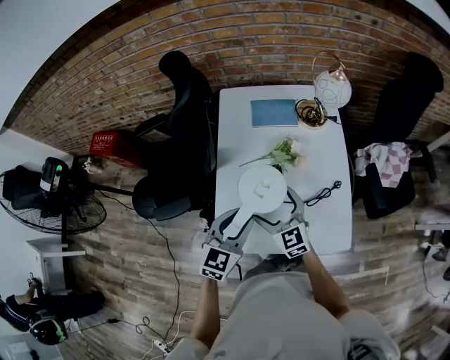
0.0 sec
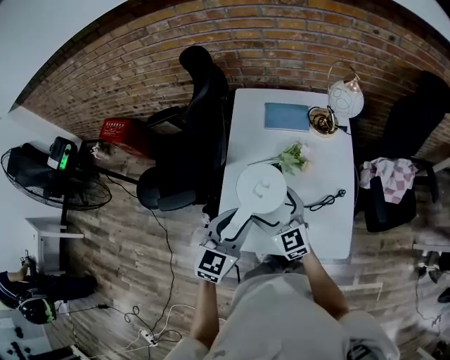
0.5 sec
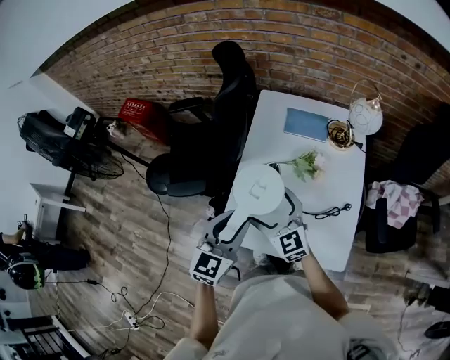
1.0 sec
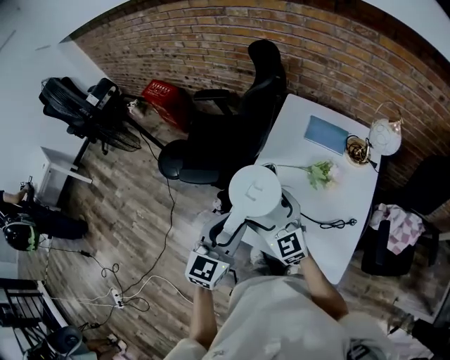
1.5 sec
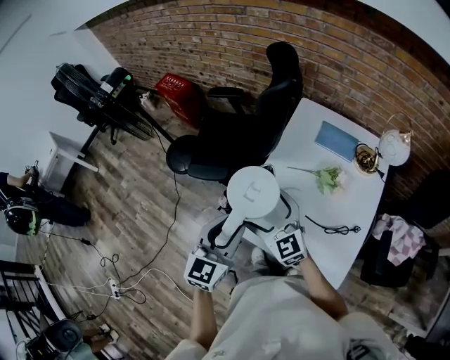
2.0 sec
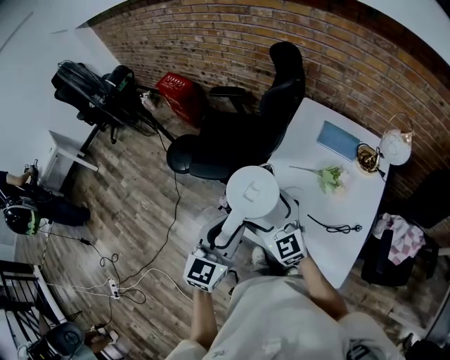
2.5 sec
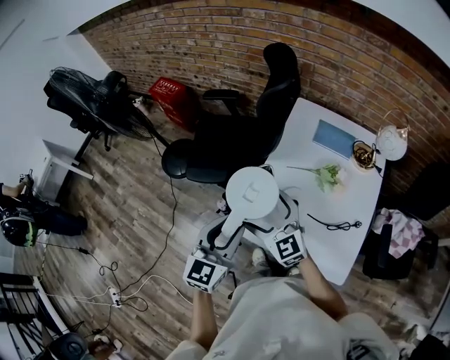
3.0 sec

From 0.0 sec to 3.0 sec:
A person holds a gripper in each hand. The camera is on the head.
From 0.0 sec to 1.5 sec: The left gripper shifts by some 10 cm, and turns by approximately 30 degrees. The right gripper shifts by approximately 10 cm, and turns by about 30 degrees.
From 1.5 sec to 3.0 sec: The two grippers go about 5 cm to the left.

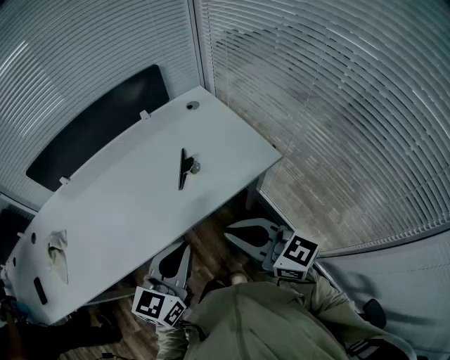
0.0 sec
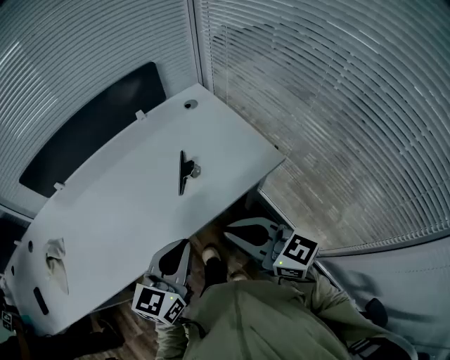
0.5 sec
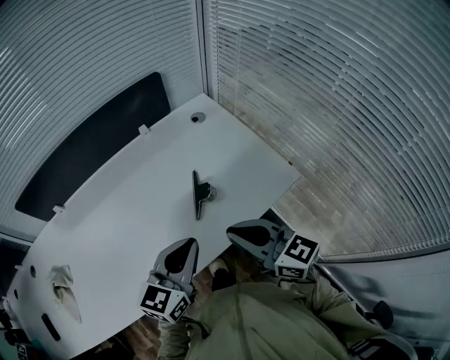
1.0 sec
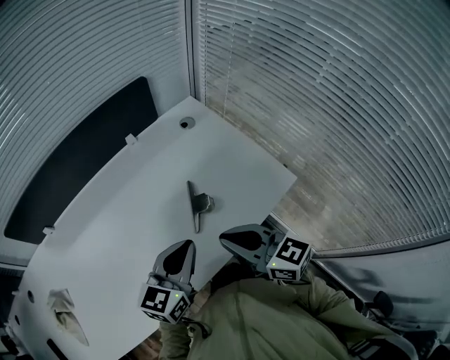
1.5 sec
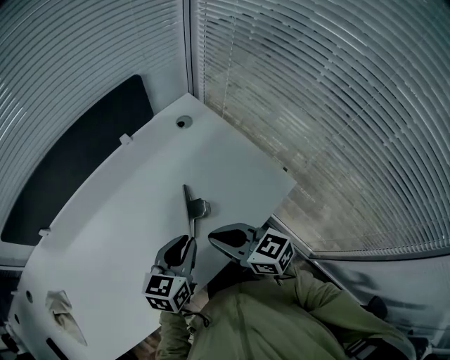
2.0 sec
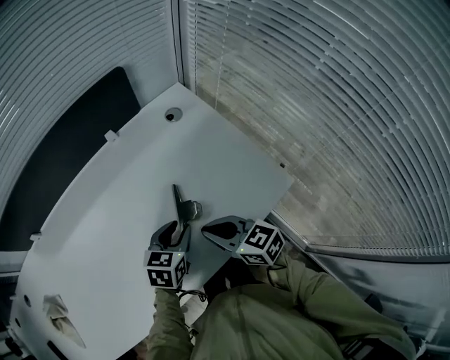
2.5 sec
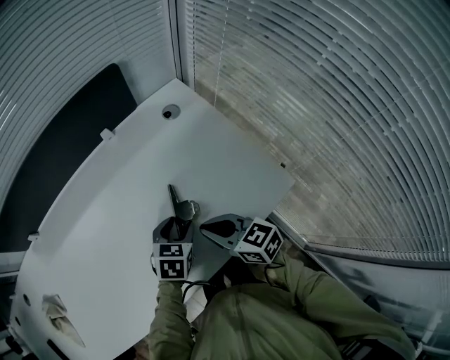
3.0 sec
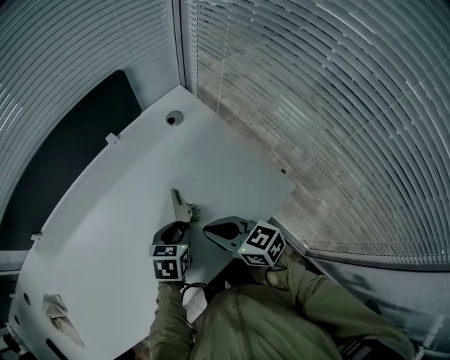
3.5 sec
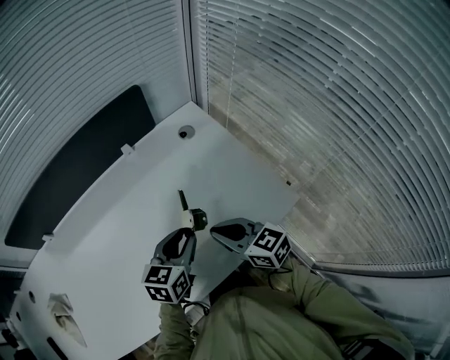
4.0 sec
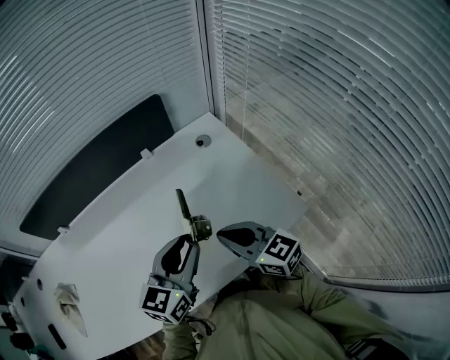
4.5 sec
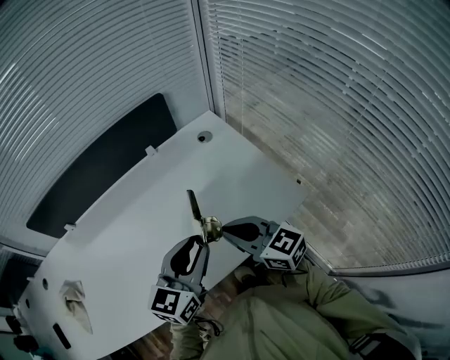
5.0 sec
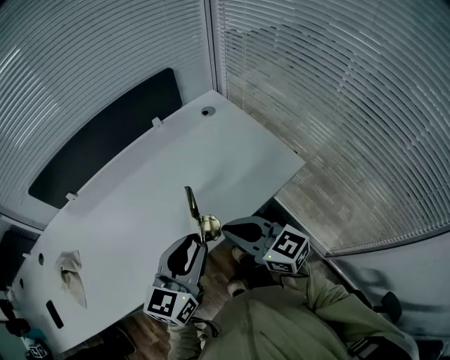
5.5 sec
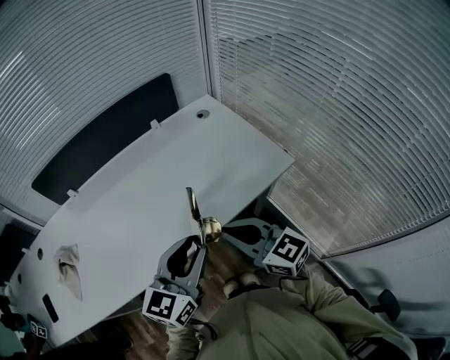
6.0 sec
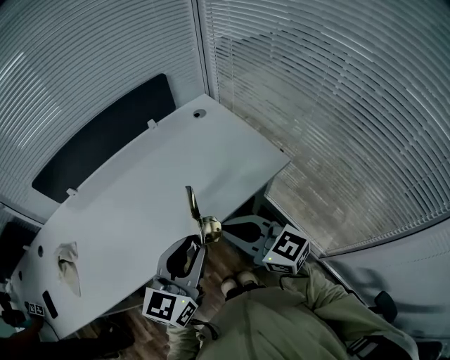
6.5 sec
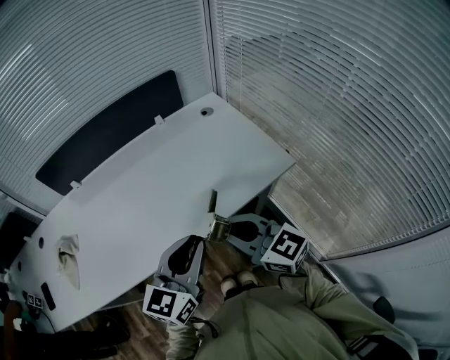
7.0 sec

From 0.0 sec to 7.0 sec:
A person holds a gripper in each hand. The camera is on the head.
From 0.0 sec to 2.0 sec: Both grippers move forward and downward, some 25 cm.
From 2.0 sec to 3.5 sec: The right gripper moves downward, about 5 cm. Meanwhile the left gripper heads downward and forward, covering approximately 10 cm, turns by some 20 degrees, and opens, then closes again.
From 3.5 sec to 5.0 sec: The left gripper goes some 20 cm upward, and tilts its fingers roughly 40 degrees upward, while the right gripper moves upward, approximately 10 cm.
From 5.0 sec to 7.0 sec: Both grippers move backward, approximately 15 cm.

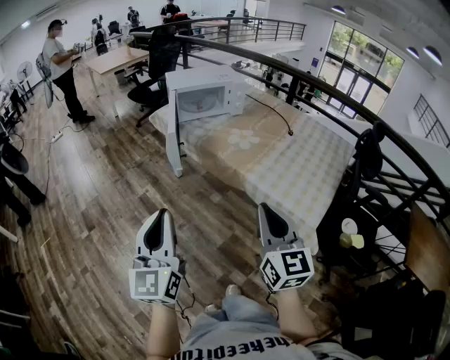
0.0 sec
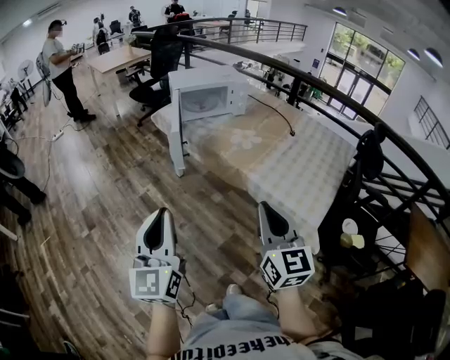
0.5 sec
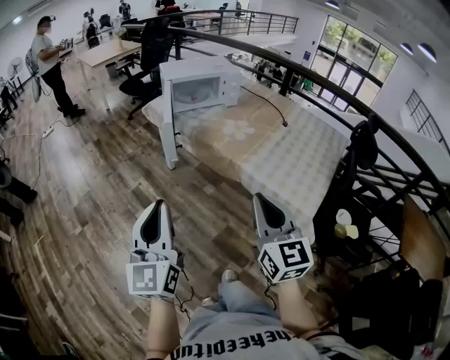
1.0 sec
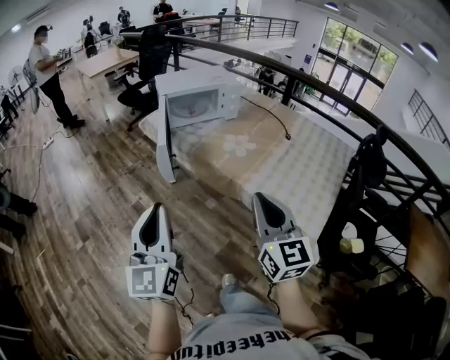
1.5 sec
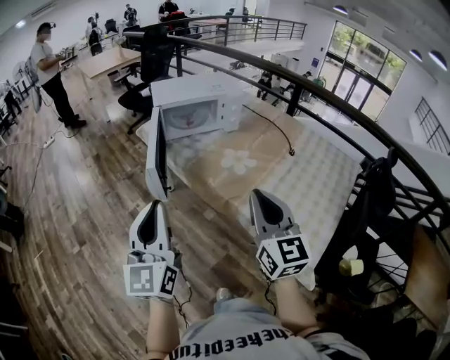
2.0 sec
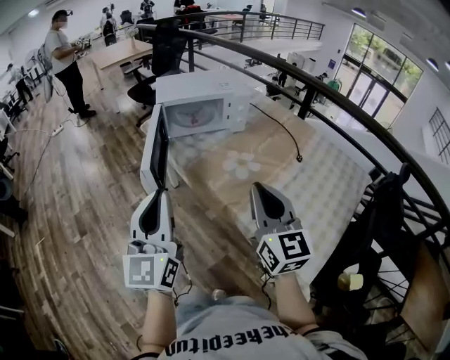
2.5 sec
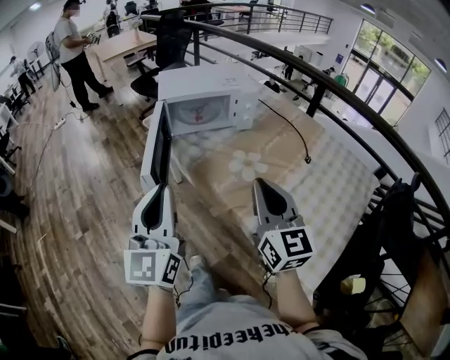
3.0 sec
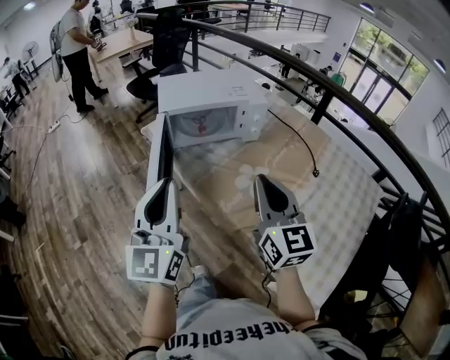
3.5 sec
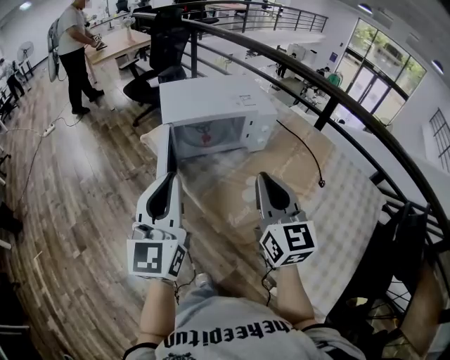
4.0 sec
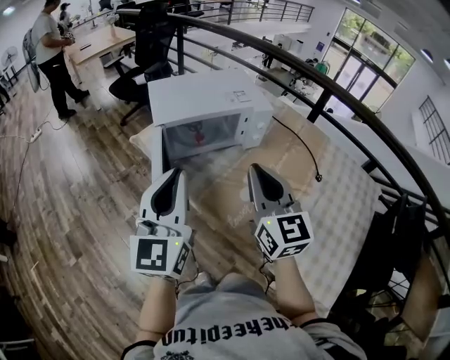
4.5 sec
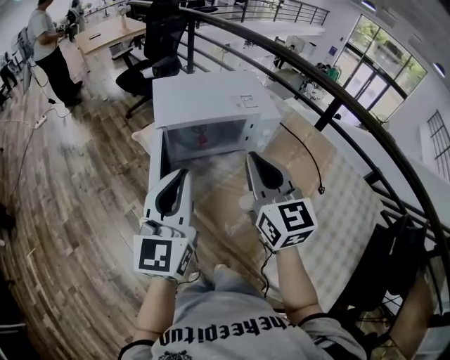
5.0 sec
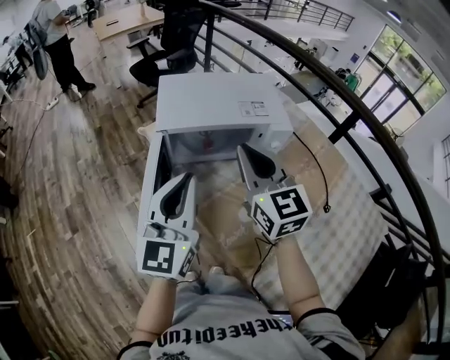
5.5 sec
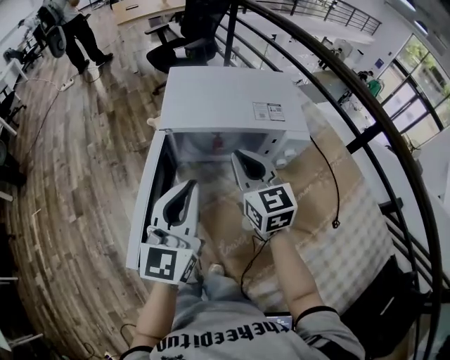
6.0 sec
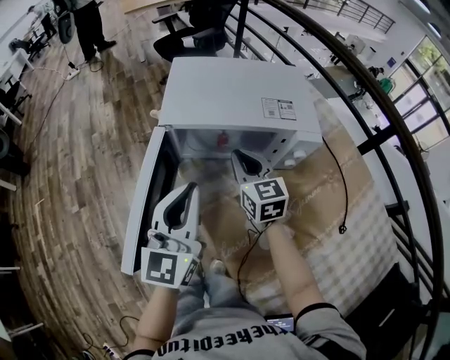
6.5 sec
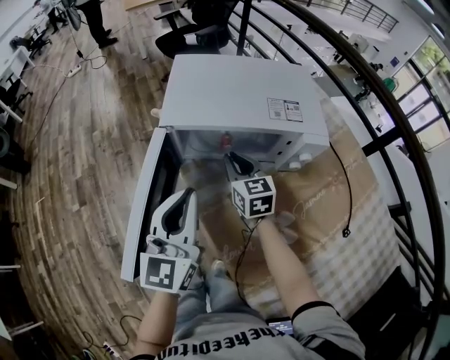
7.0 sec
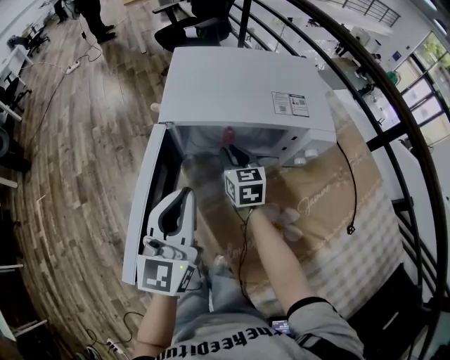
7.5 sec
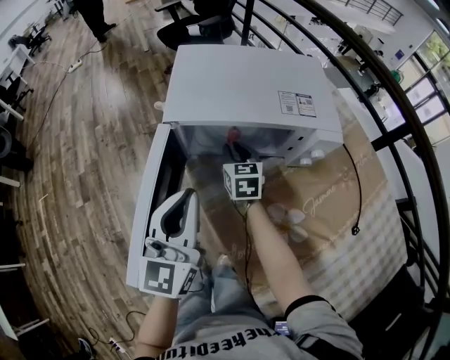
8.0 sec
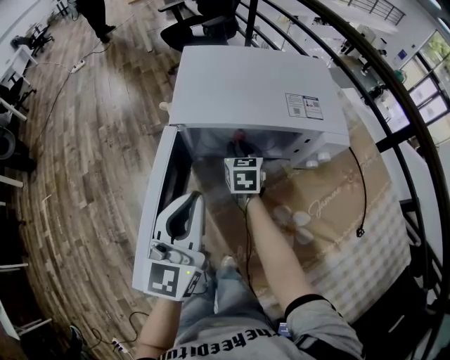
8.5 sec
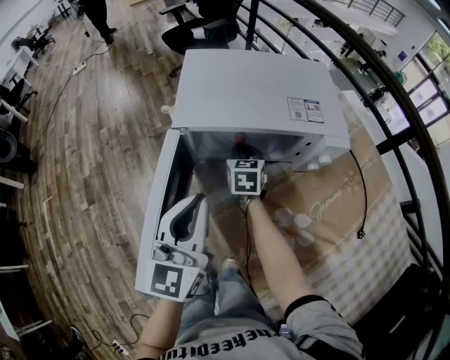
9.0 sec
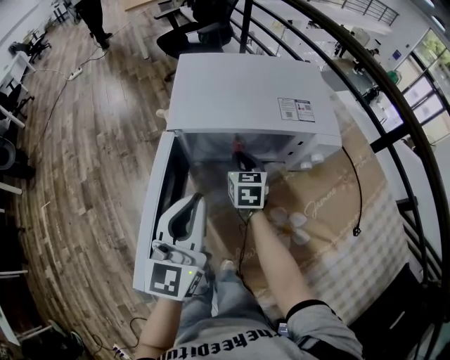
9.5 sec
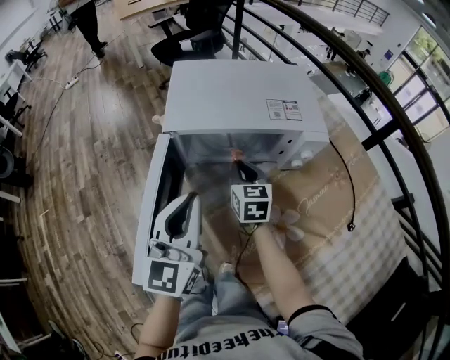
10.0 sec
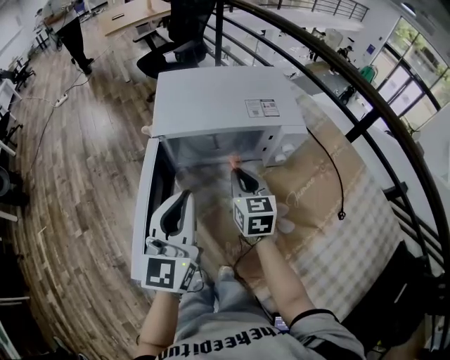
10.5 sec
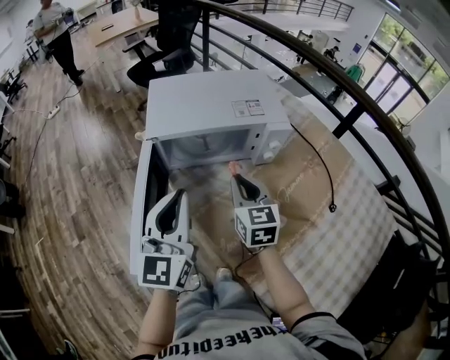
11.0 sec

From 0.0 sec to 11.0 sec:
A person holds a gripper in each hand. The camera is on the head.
From 0.0 sec to 2.0 sec: The grippers both shift forward by about 20 cm.
From 2.0 sec to 3.5 sec: The two grippers go approximately 20 cm forward.
From 3.5 sec to 5.5 sec: The grippers both shift forward by about 20 cm.
From 5.5 sec to 7.5 sec: The left gripper is displaced downward by approximately 10 cm. Meanwhile the right gripper shifts some 30 cm downward and forward, and turns by approximately 30 degrees.
From 7.5 sec to 9.0 sec: The right gripper changes place by about 5 cm.
From 9.0 sec to 11.0 sec: The right gripper goes approximately 25 cm backward, upward and to the right. The left gripper shifts approximately 5 cm upward.

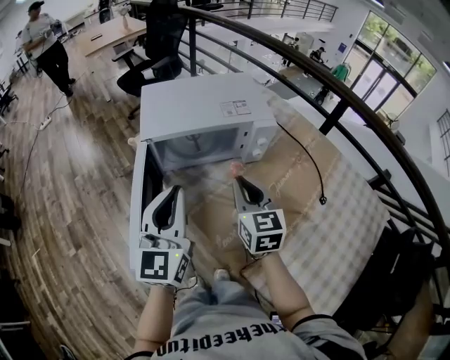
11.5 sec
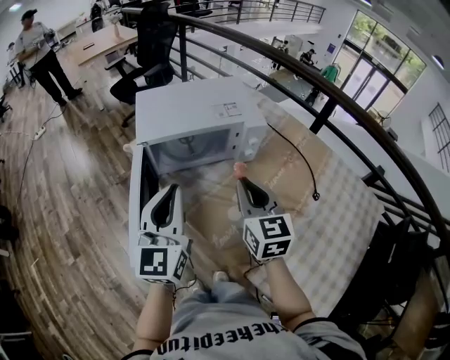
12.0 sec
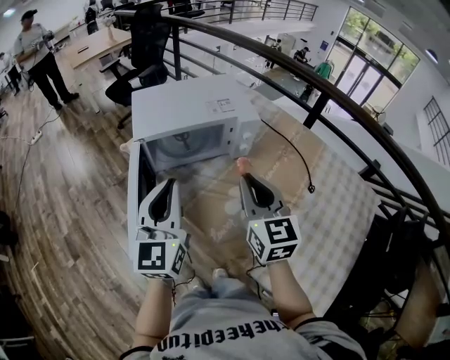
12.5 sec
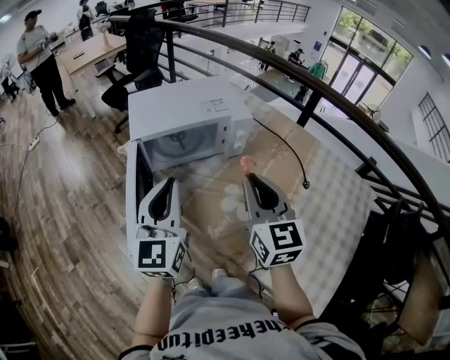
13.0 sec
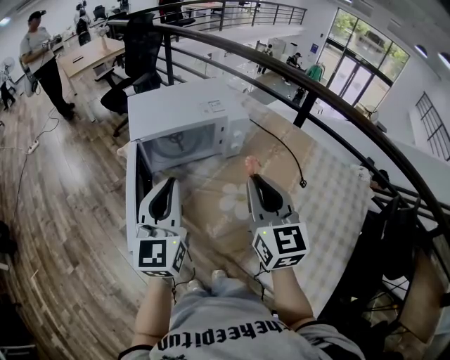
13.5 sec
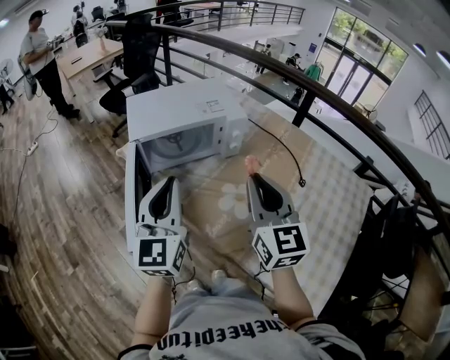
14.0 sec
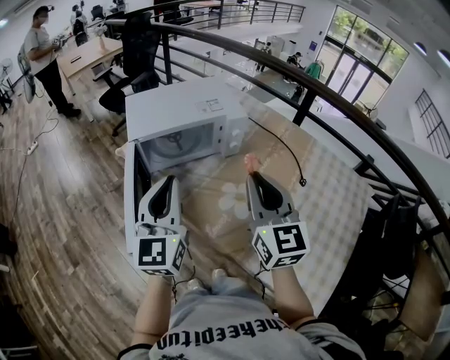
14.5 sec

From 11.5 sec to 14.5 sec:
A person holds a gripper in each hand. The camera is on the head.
From 11.5 sec to 13.0 sec: The right gripper is displaced upward and backward by roughly 15 cm.
From 13.0 sec to 14.5 sec: The grippers stay close to where they were, moving slightly.

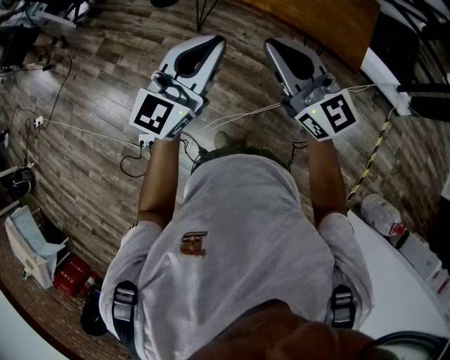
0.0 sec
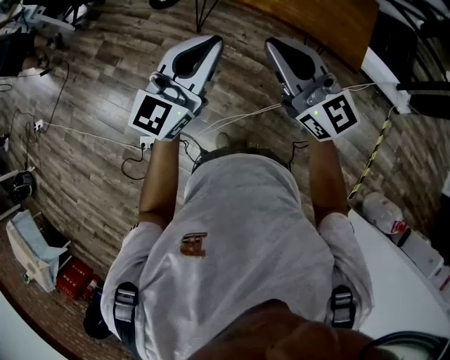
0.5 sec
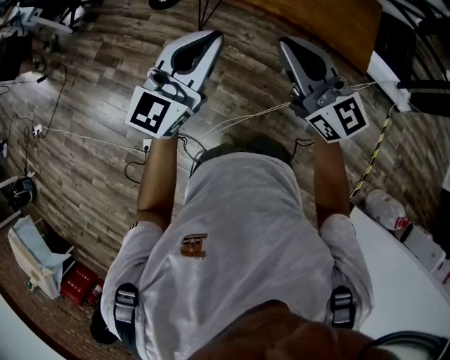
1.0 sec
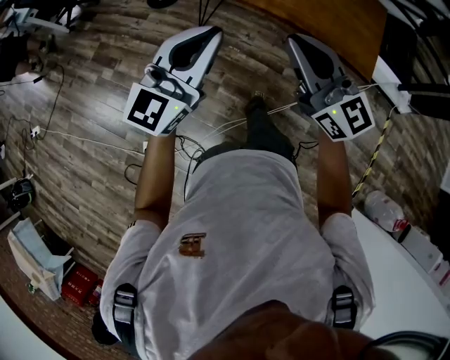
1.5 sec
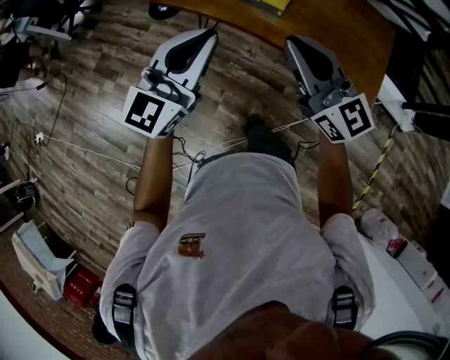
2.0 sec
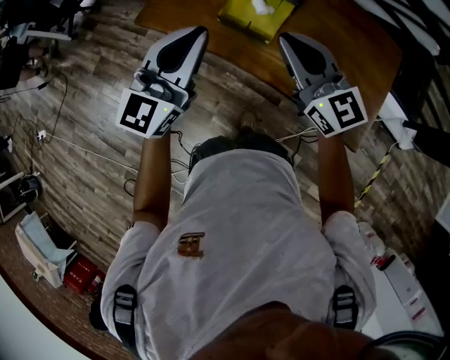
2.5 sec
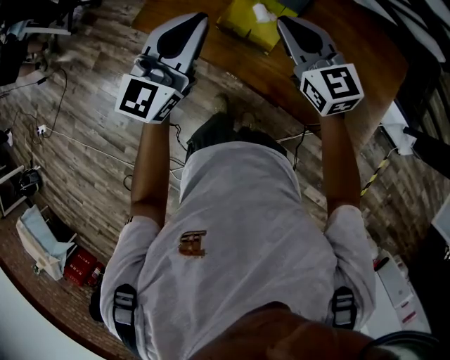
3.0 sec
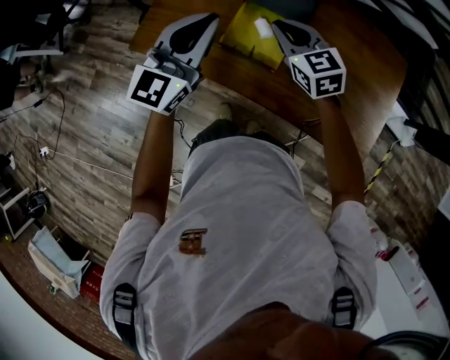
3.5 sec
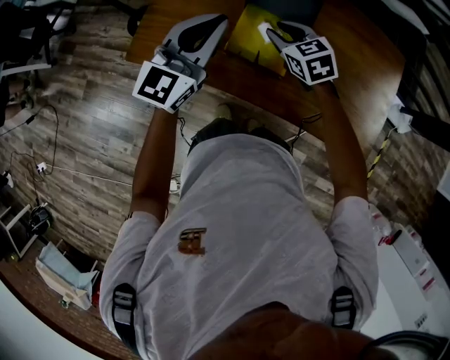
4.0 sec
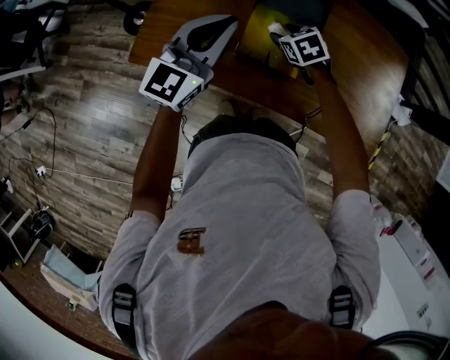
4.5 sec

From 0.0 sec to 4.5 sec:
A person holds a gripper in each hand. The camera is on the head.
From 0.0 sec to 2.0 sec: The grippers both shift forward by some 25 cm.
From 2.0 sec to 4.5 sec: Both grippers are carried forward, some 50 cm. The right gripper heads downward, covering roughly 30 cm, tilts its fingers about 70 degrees downward, and opens its fingers.
